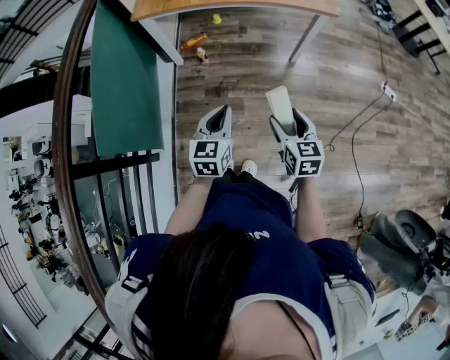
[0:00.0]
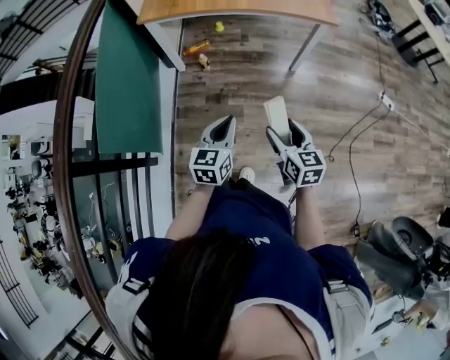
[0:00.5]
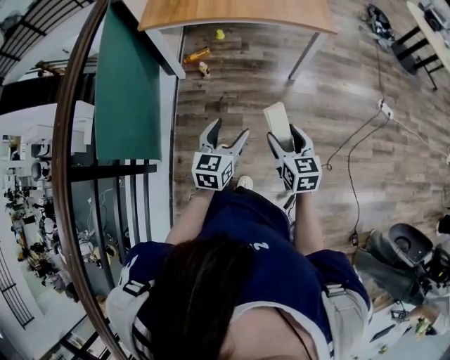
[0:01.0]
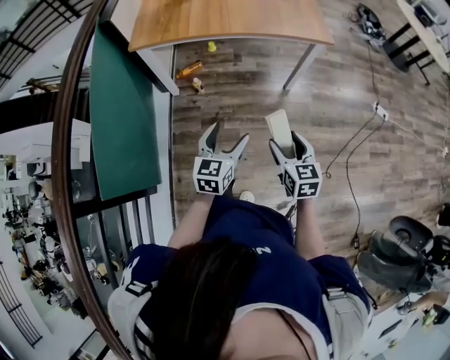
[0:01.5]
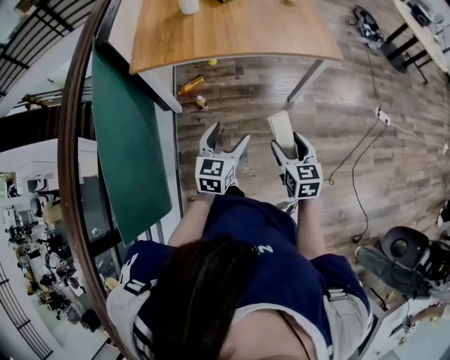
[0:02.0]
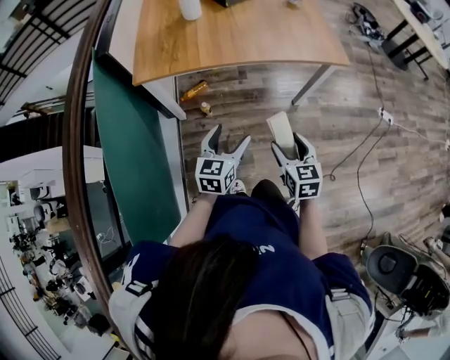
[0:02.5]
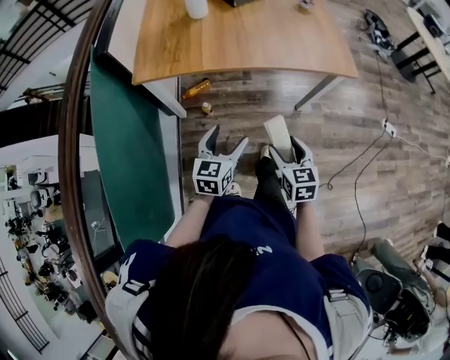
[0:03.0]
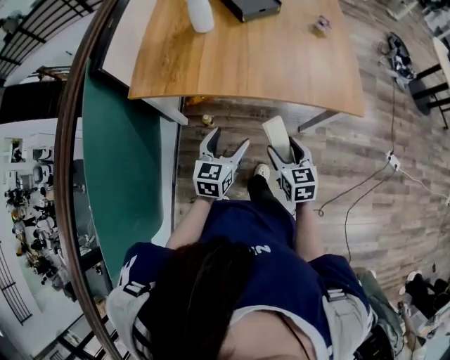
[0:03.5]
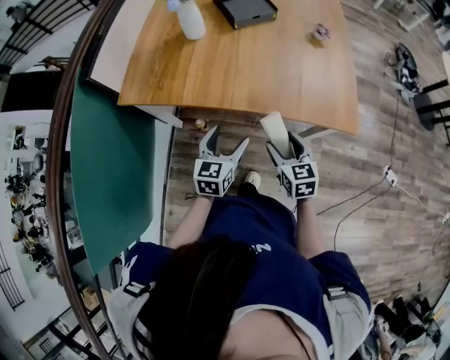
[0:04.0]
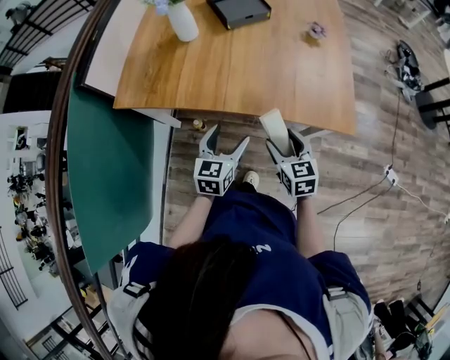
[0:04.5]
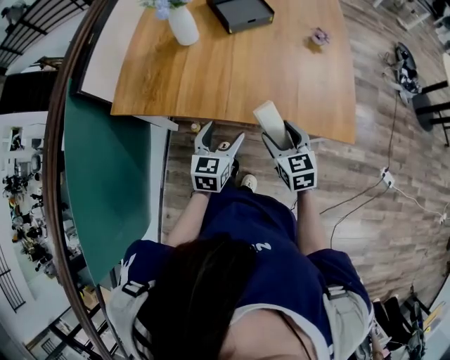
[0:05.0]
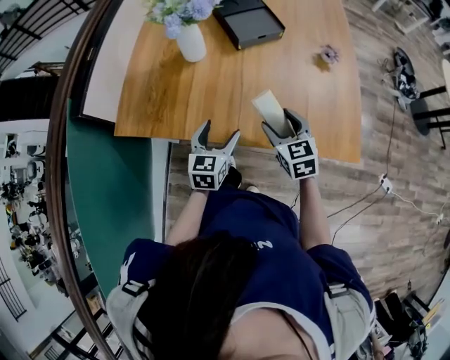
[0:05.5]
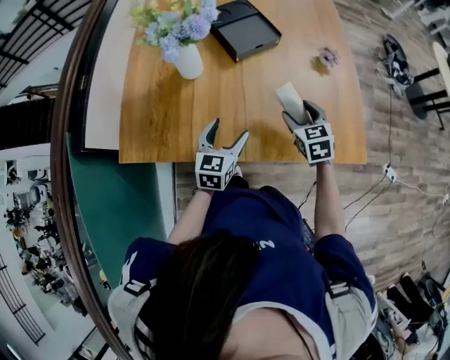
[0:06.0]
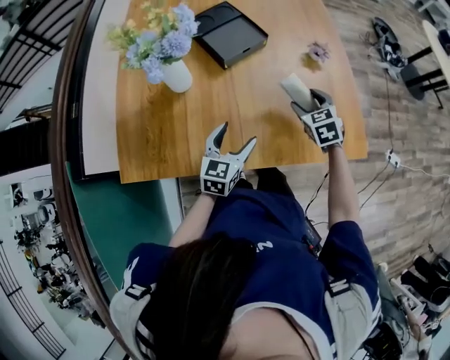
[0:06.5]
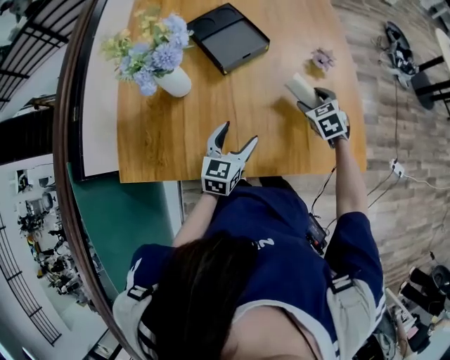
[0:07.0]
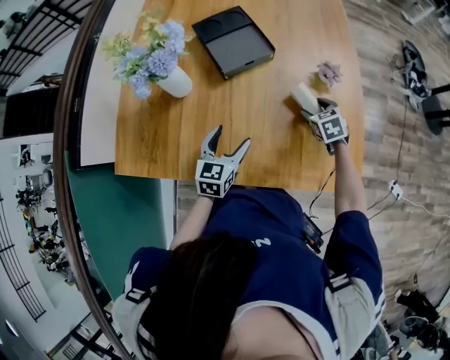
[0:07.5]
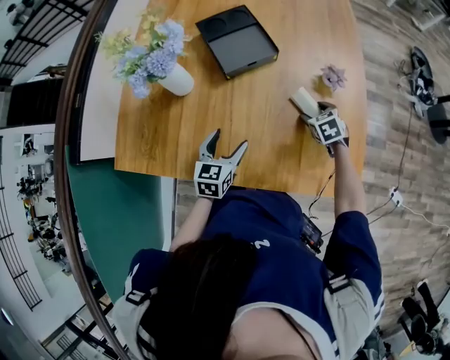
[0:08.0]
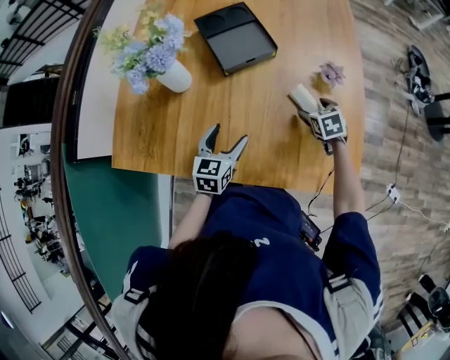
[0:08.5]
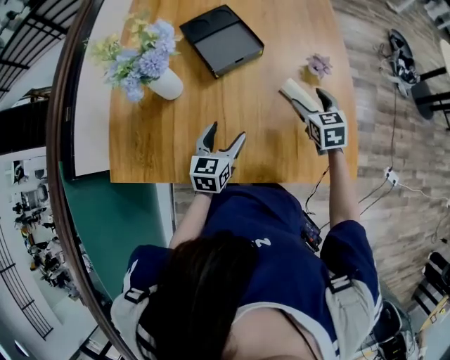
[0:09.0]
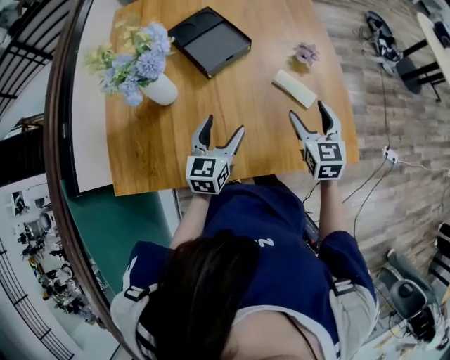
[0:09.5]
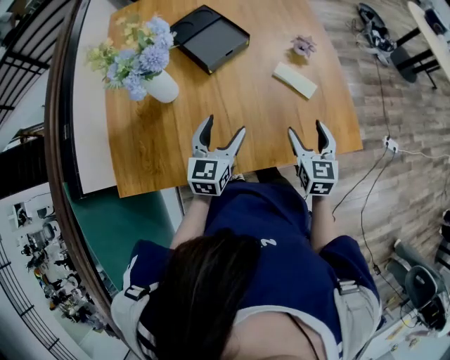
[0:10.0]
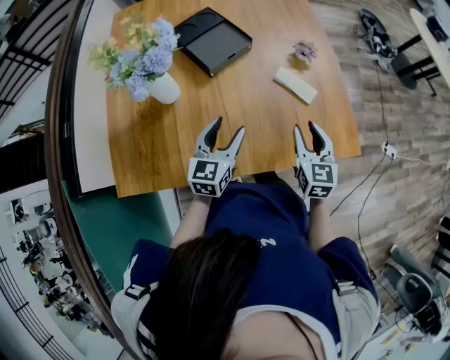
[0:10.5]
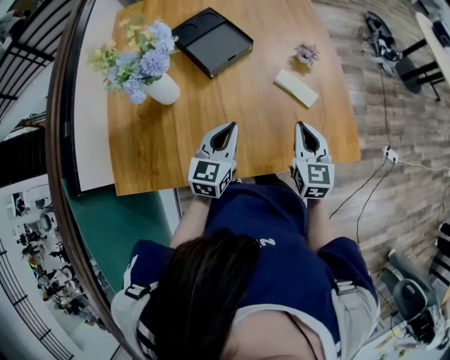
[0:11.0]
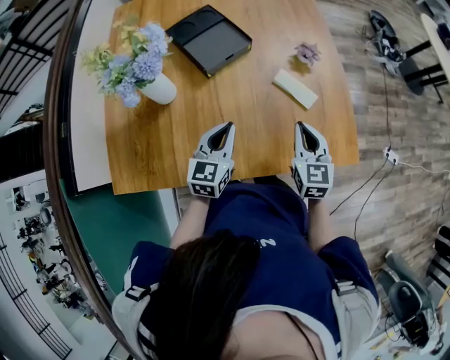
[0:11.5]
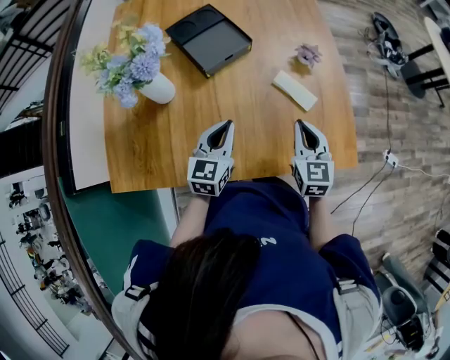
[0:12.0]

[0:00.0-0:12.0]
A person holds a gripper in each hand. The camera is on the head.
0:00.0 to 0:02.0: Both grippers move forward, about 20 cm. The left gripper opens up.
0:02.0 to 0:04.0: Both grippers move forward, about 30 cm.
0:04.0 to 0:06.0: The grippers both shift forward by about 25 cm.
0:06.0 to 0:08.0: The left gripper heads forward and to the right, covering some 10 cm. Meanwhile the right gripper goes approximately 20 cm forward, to the right and downward, and rotates some 20 degrees.
0:08.0 to 0:10.0: The right gripper moves backward and upward, approximately 25 cm, and tilts its fingers approximately 30 degrees upward, while the left gripper shifts approximately 5 cm upward, and turns by some 20 degrees.
0:10.0 to 0:12.0: The left gripper closes up. Meanwhile the right gripper shifts about 5 cm forward, and closes up.

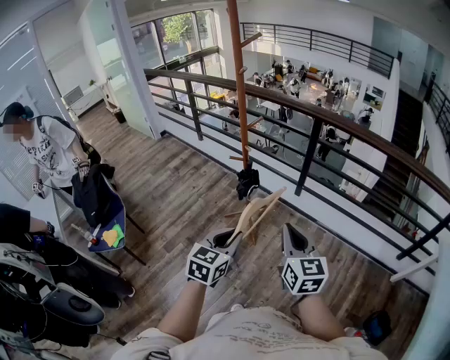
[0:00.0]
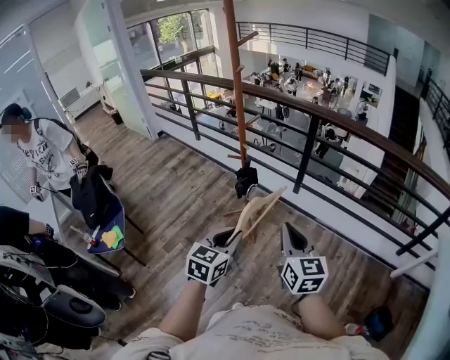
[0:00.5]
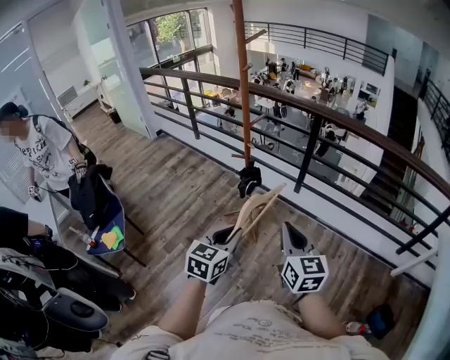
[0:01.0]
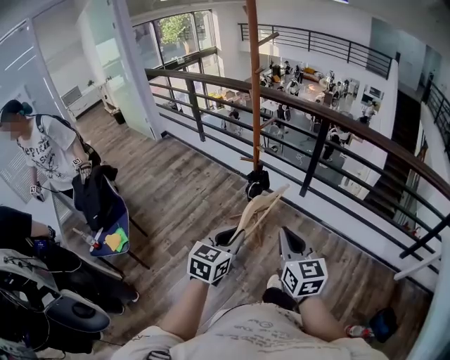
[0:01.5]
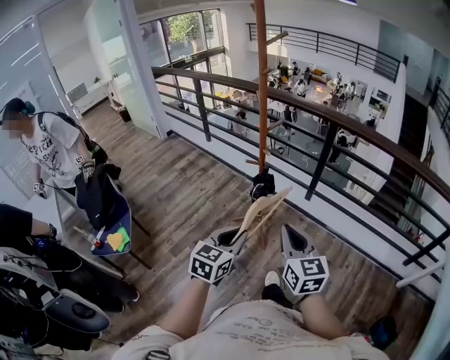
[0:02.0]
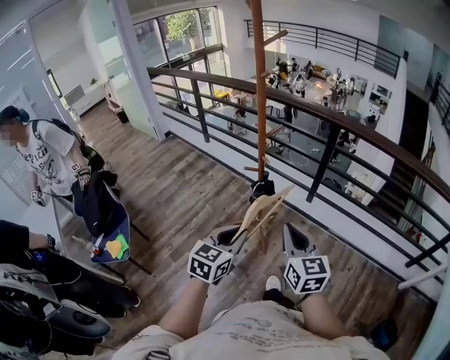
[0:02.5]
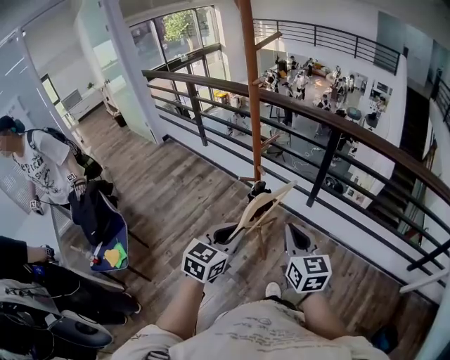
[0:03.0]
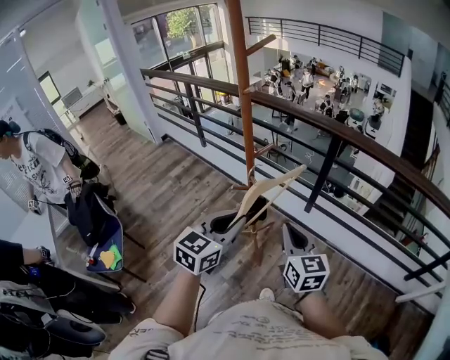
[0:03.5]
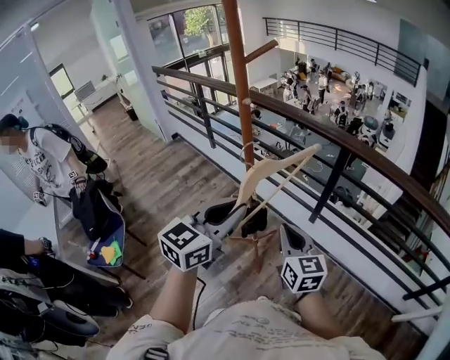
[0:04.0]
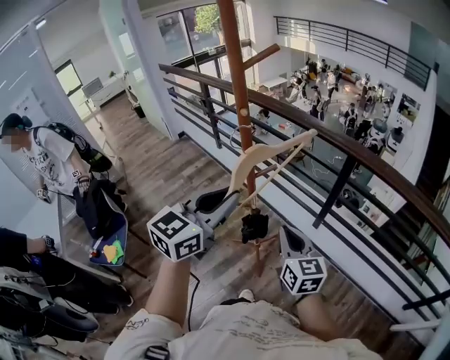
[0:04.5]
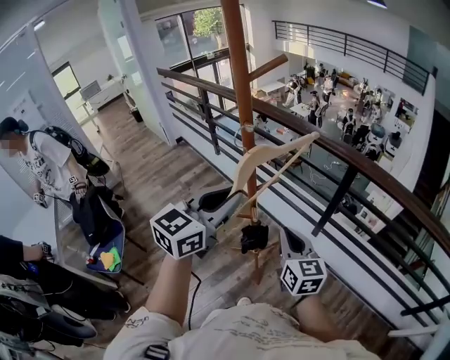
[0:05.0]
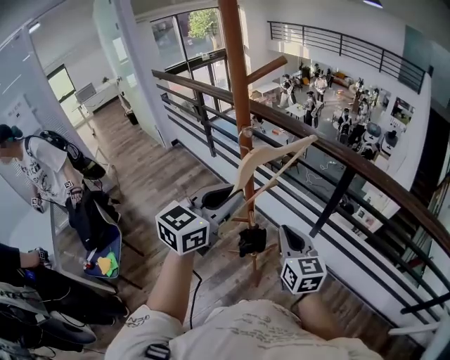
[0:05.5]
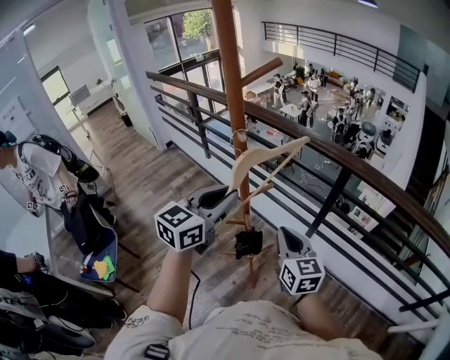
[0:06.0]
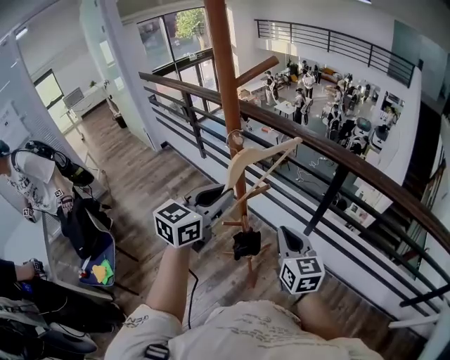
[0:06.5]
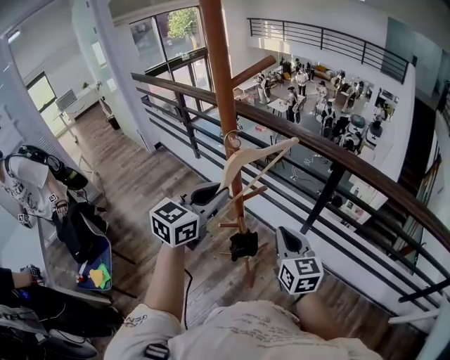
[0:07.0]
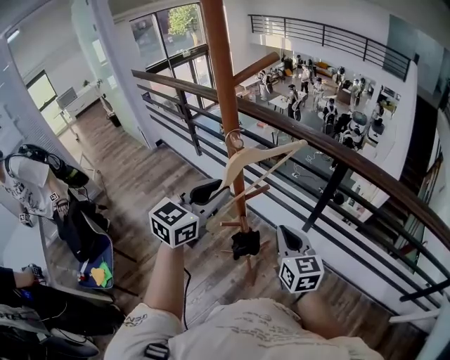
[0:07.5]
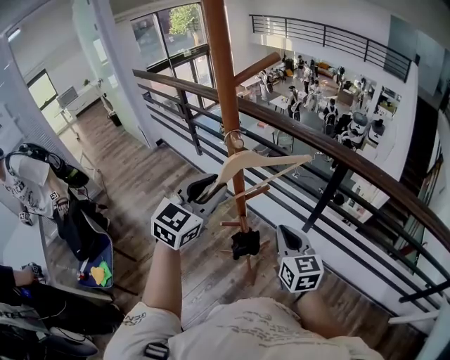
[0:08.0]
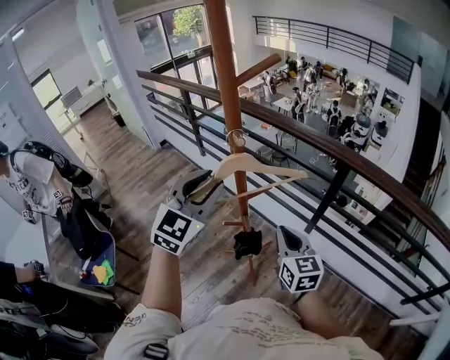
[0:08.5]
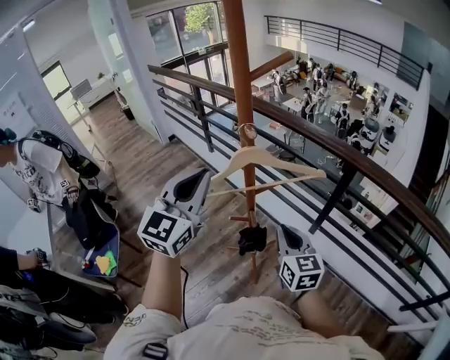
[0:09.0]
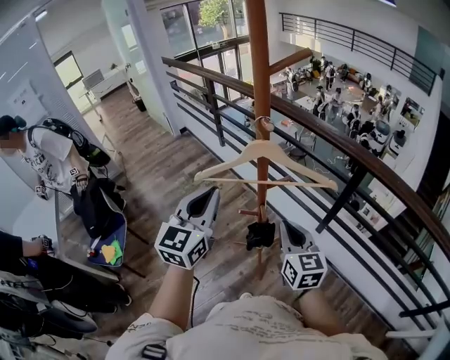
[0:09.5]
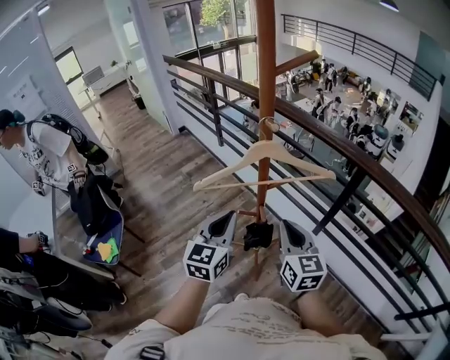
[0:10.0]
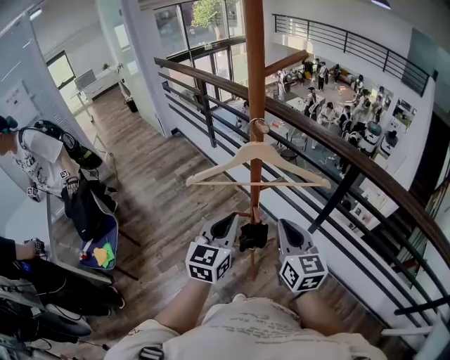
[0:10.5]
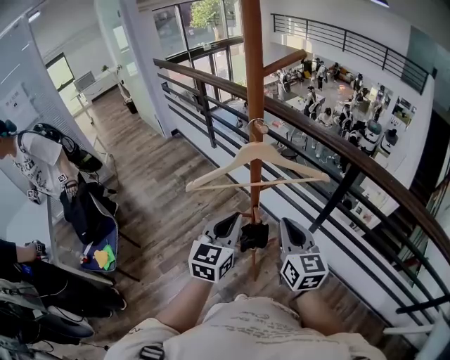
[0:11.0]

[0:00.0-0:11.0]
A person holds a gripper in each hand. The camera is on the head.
0:00.0 to 0:02.0: The grippers both shift to the left by roughly 5 cm.
0:02.0 to 0:03.5: The right gripper heads forward, covering some 20 cm. The left gripper shifts about 20 cm forward and upward.
0:03.5 to 0:05.5: The left gripper travels forward and upward by about 20 cm, while the right gripper shifts some 15 cm forward.
0:05.5 to 0:07.5: The left gripper heads forward, covering approximately 5 cm.
0:07.5 to 0:09.0: The left gripper moves upward and to the left, approximately 10 cm, and rotates approximately 30 degrees.
0:09.0 to 0:11.0: The left gripper heads downward, covering some 15 cm, and swivels approximately 20 degrees.

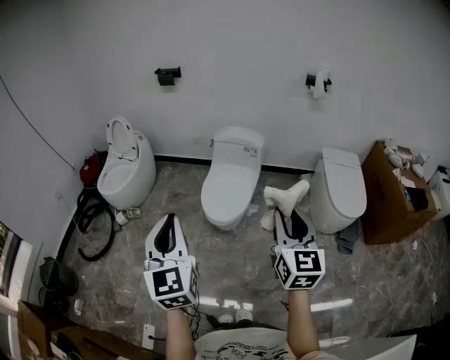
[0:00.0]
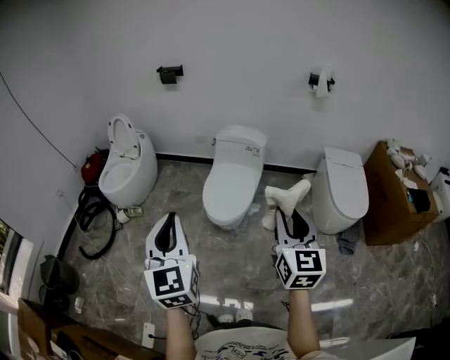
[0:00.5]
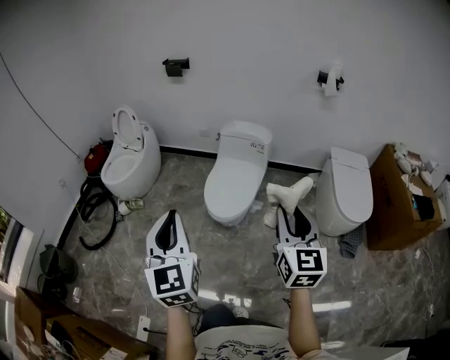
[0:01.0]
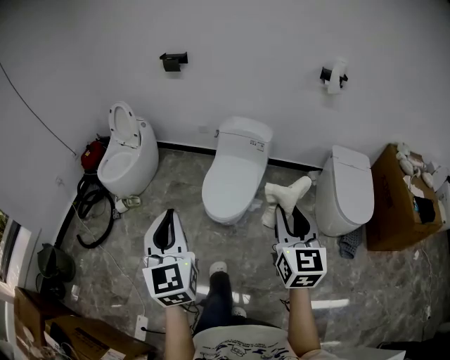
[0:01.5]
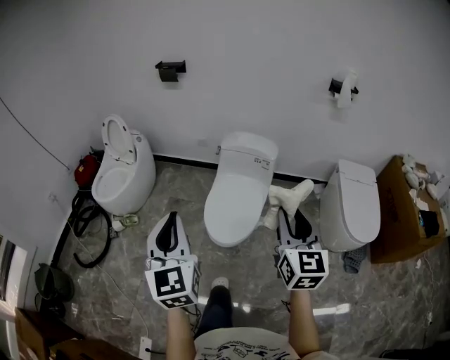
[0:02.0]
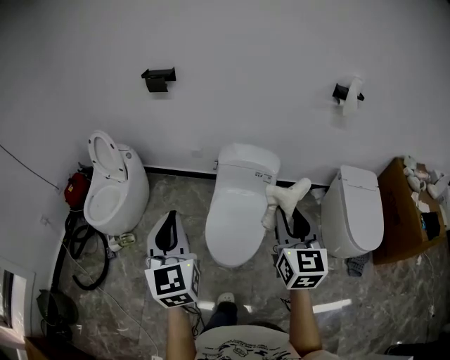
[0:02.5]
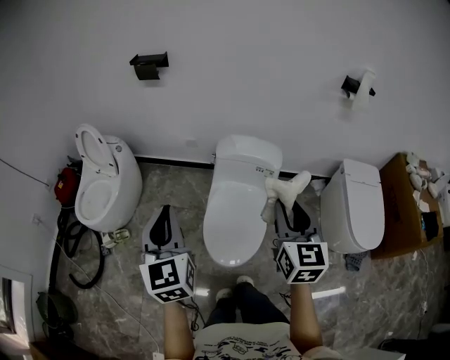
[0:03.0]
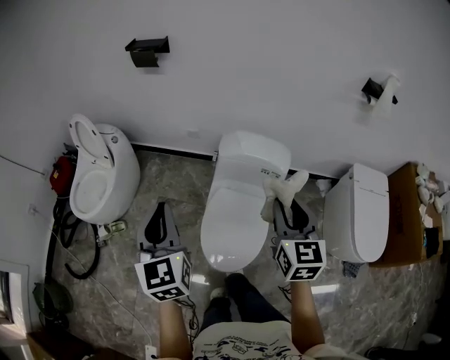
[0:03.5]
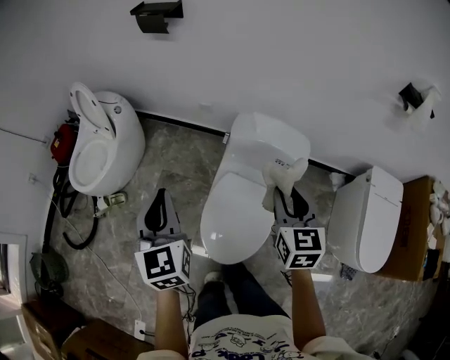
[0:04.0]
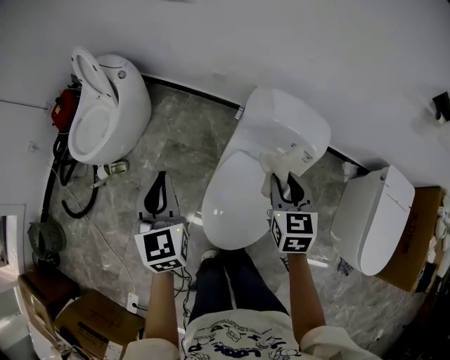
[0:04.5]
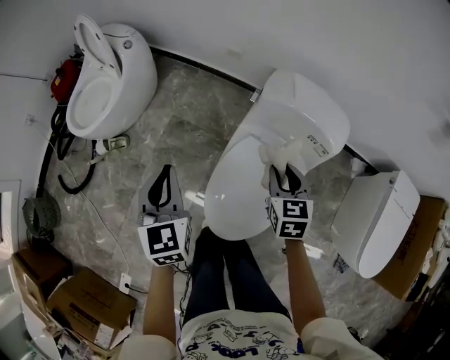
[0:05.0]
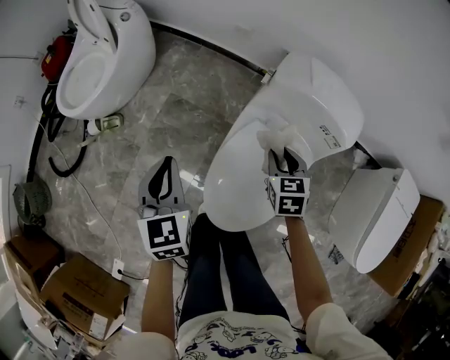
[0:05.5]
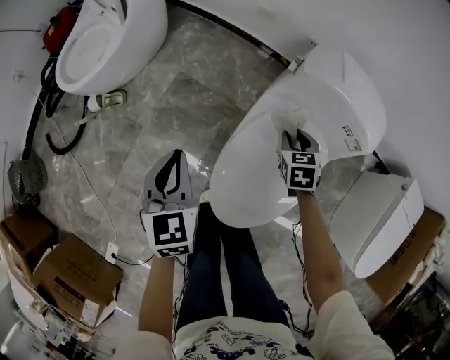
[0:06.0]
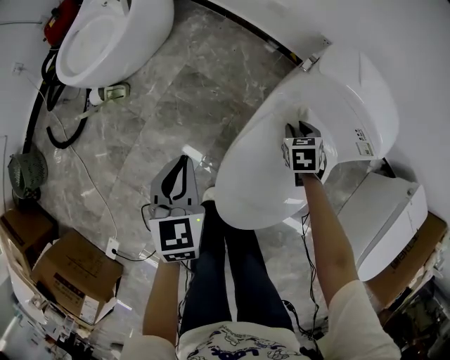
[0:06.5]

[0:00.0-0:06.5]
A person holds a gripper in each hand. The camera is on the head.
0:00.0 to 0:02.0: Both grippers travel together forward, approximately 20 cm.
0:02.0 to 0:04.5: The two grippers travel together, forward, some 50 cm. The two grippers go about 25 cm downward. The left gripper changes its angle by roughly 20 degrees, while the right gripper swivels roughly 30 degrees.
0:04.5 to 0:06.5: Both grippers move downward, about 30 cm. The right gripper angles its fingers downward, by approximately 30 degrees.
